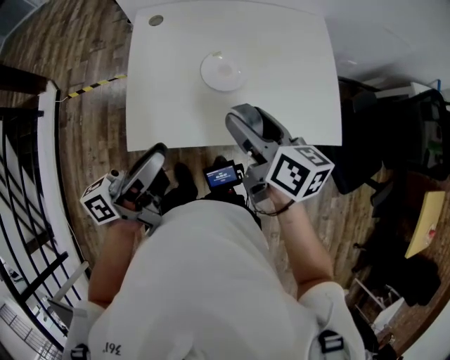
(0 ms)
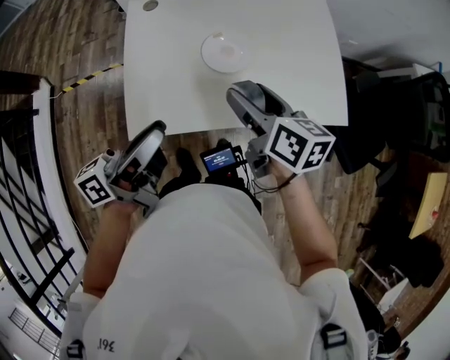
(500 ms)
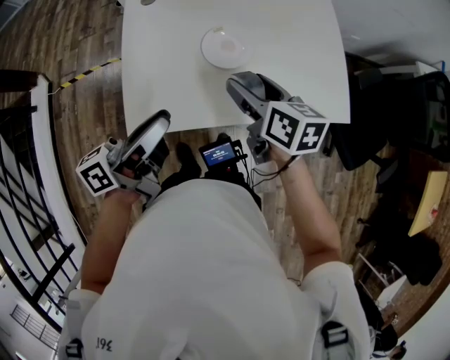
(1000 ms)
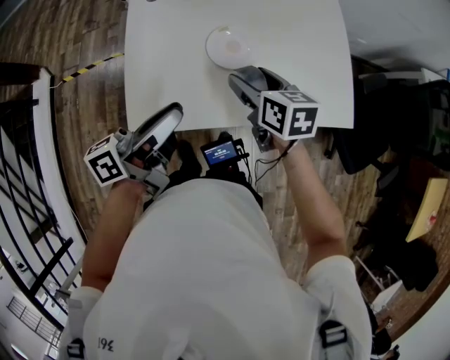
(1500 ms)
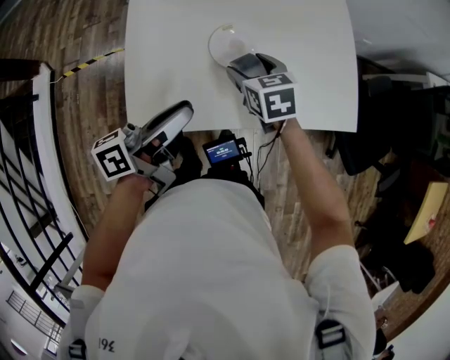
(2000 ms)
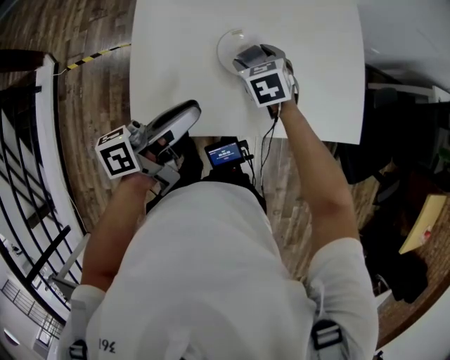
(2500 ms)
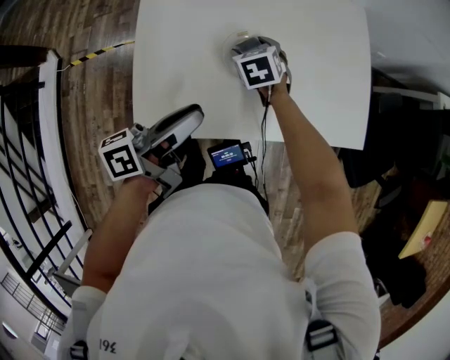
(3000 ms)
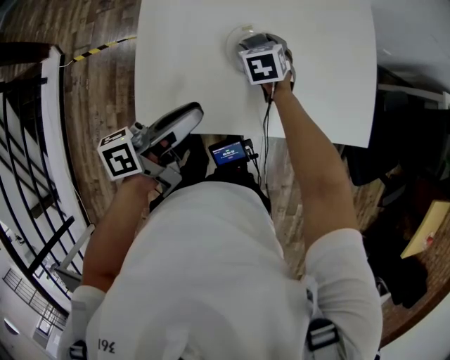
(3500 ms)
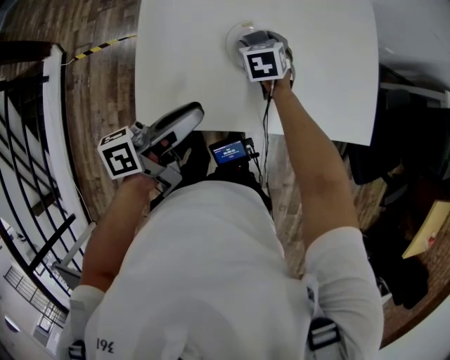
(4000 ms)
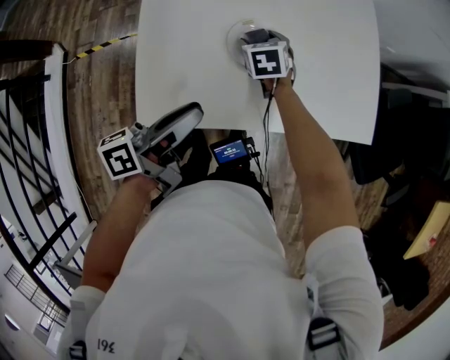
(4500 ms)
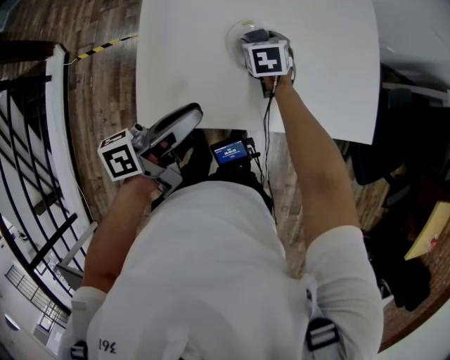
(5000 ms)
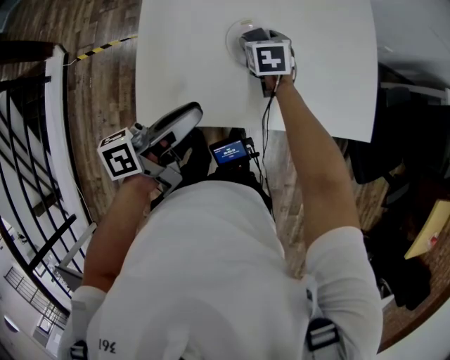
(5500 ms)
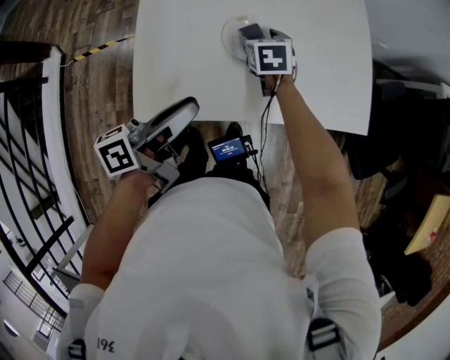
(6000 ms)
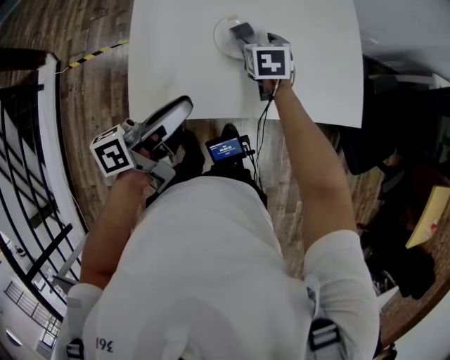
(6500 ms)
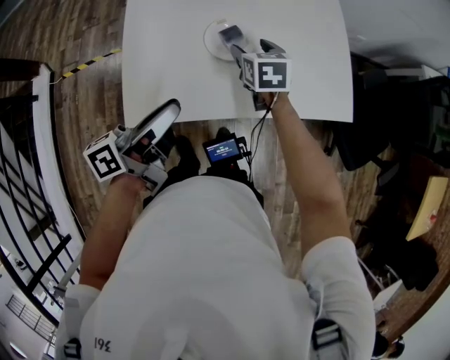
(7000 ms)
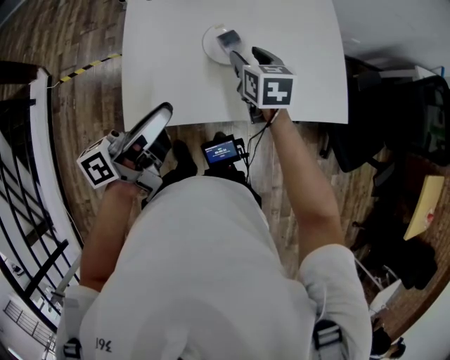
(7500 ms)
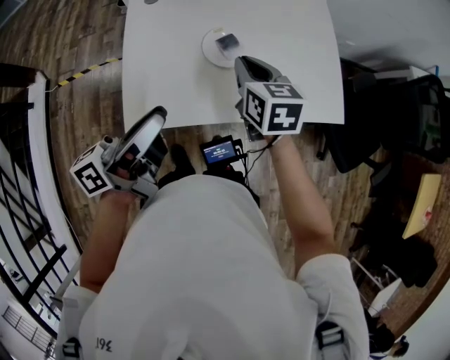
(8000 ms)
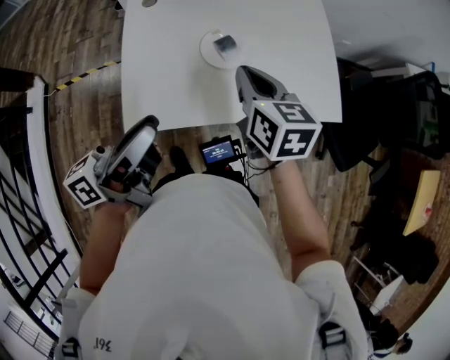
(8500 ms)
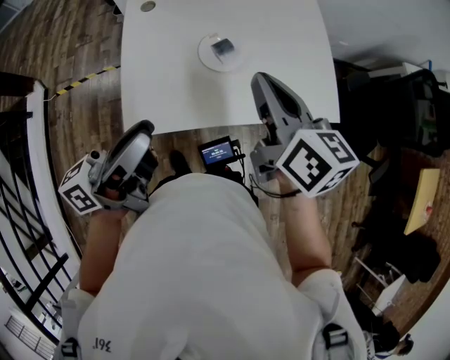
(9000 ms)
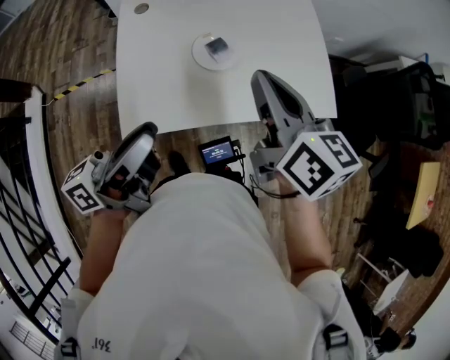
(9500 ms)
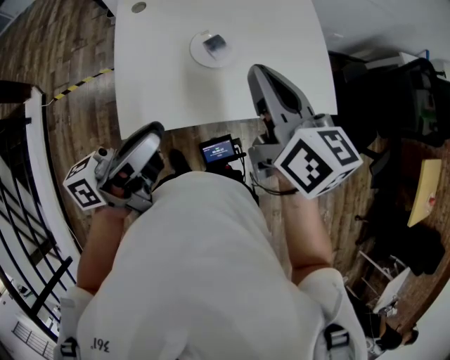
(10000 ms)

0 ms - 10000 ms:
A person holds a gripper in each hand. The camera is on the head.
0 ms - 2000 ms: The right gripper is displaced downward and forward by about 20 cm, and turns by approximately 40 degrees; the left gripper is displaced forward and downward by some 10 cm.
2000 ms - 4000 ms: The right gripper is displaced forward and downward by approximately 10 cm.
4000 ms - 6000 ms: There are only small adjustments of the grippers.
6000 ms - 8000 ms: The left gripper moves upward, approximately 10 cm. The right gripper shifts approximately 20 cm upward and backward, and closes.
8000 ms - 10000 ms: The right gripper moves upward and backward, approximately 15 cm, and changes its angle by roughly 20 degrees, while the left gripper ends up roughly 5 cm from where it was.

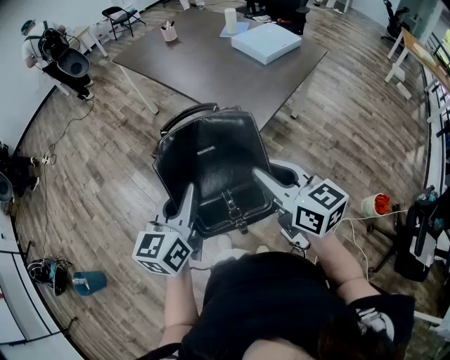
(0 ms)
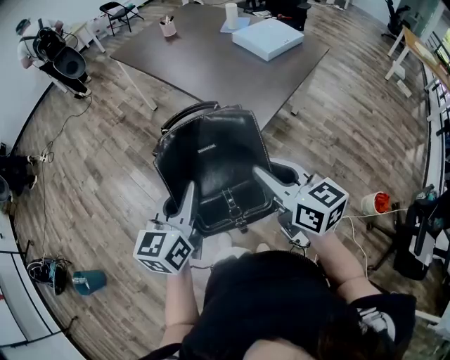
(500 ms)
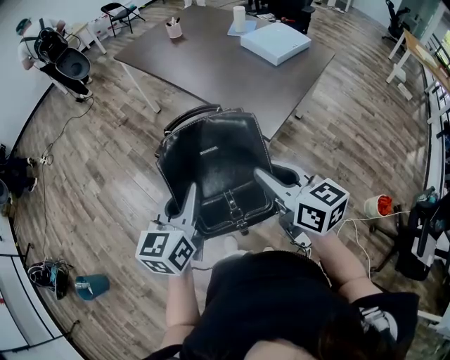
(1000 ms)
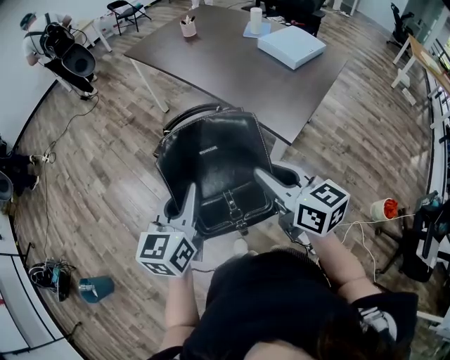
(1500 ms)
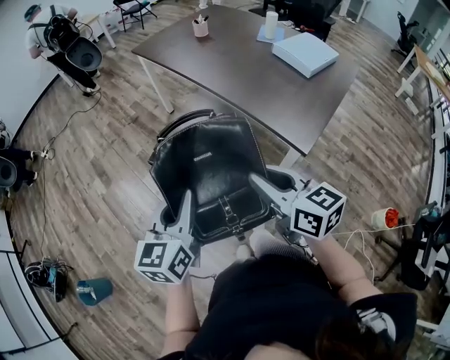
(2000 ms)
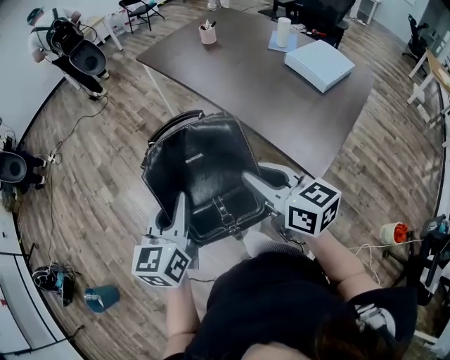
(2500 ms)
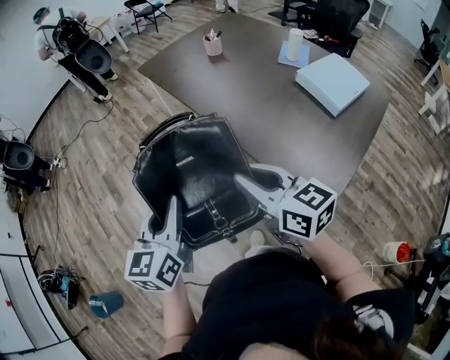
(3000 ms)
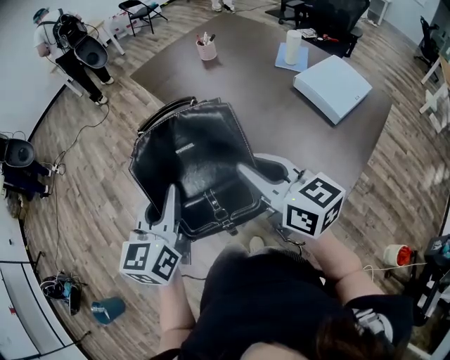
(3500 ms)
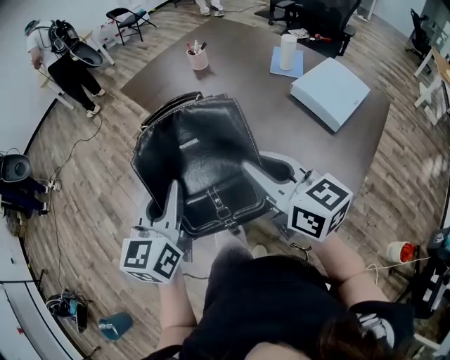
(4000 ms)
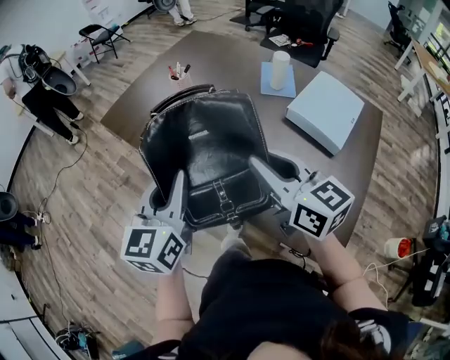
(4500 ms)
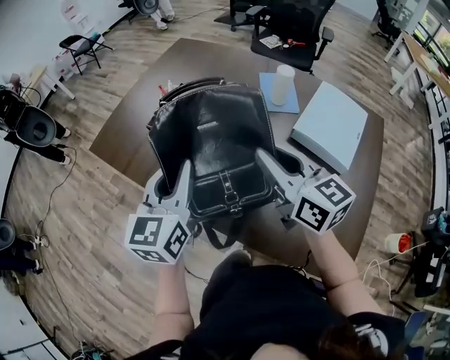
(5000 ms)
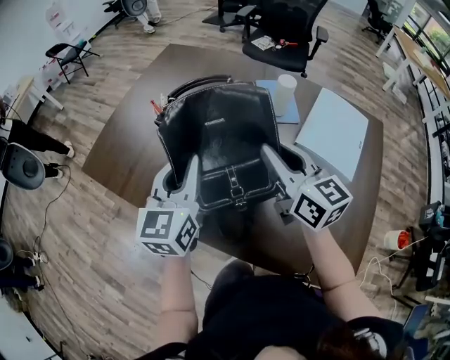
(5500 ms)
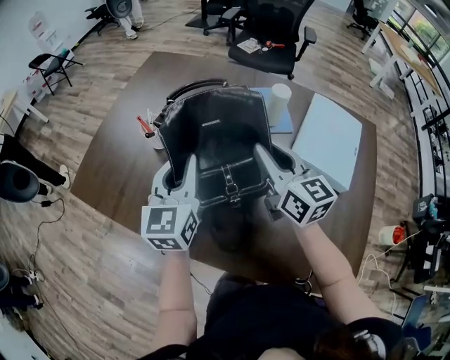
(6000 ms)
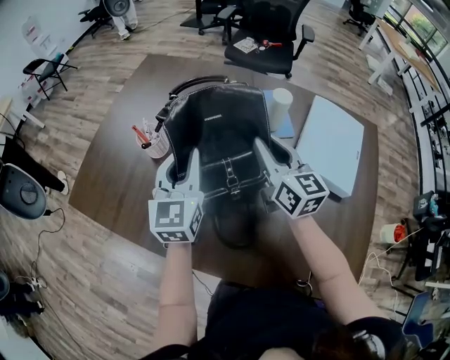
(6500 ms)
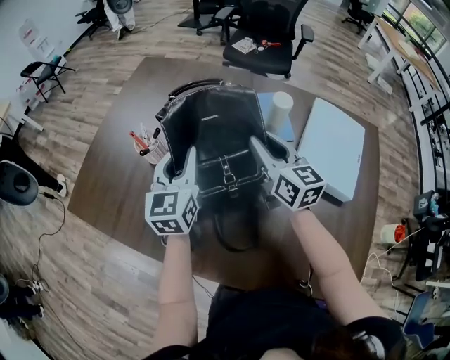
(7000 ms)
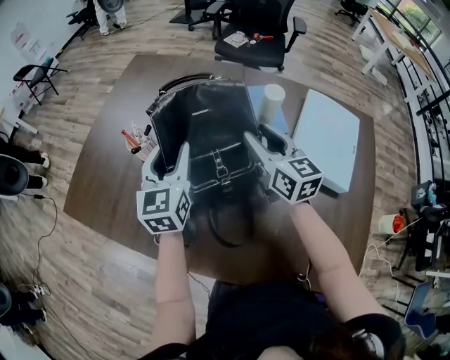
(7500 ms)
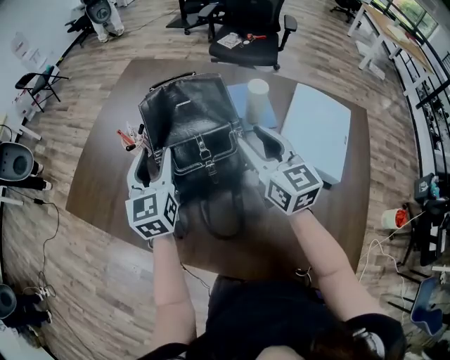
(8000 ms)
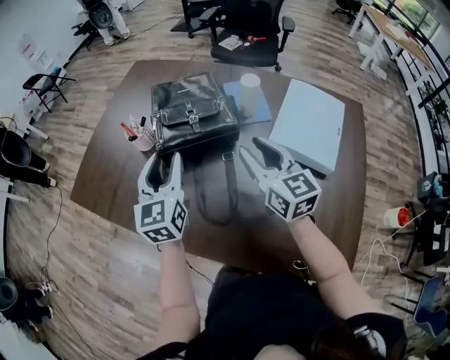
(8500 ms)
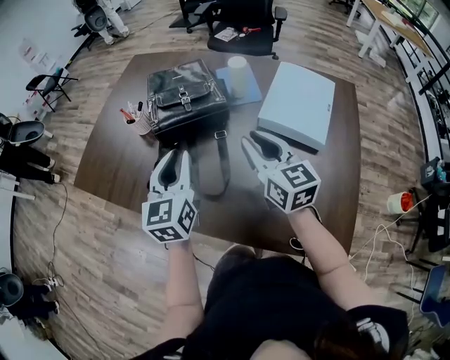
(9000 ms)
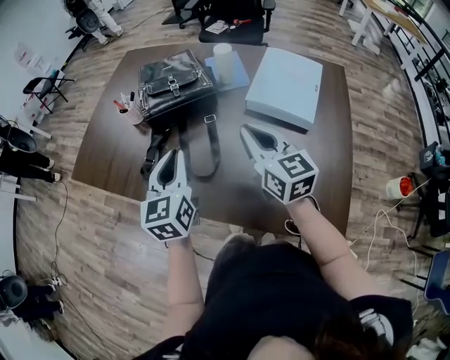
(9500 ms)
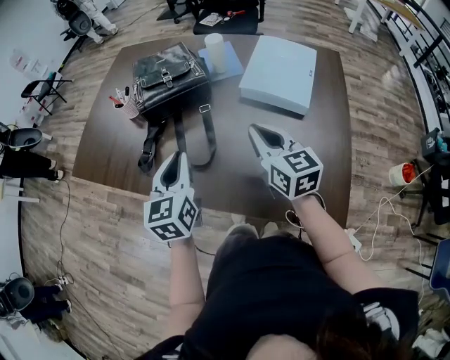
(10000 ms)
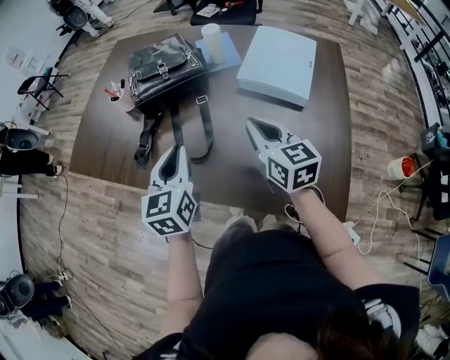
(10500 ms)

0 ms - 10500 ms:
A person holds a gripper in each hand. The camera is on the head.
0 ms - 2000 ms: Both grippers move to the left and forward, about 20 cm.
2000 ms - 4000 ms: The grippers both shift forward by approximately 35 cm.
4000 ms - 6500 ms: Both grippers are carried roughly 50 cm. The right gripper turns by approximately 40 degrees. Meanwhile the left gripper turns by roughly 30 degrees.
6500 ms - 8500 ms: Both grippers travel together backward, about 10 cm. The left gripper opens.
8500 ms - 10500 ms: The grippers both shift backward and to the right by about 20 cm. The left gripper closes up; the right gripper closes up.

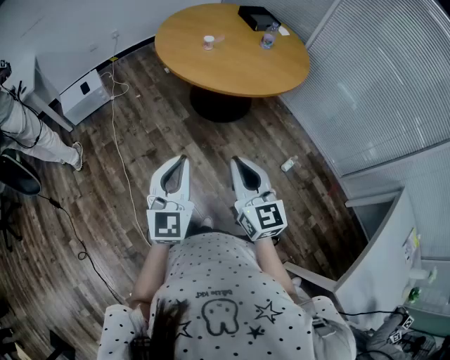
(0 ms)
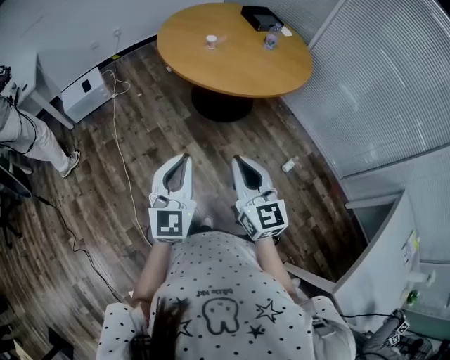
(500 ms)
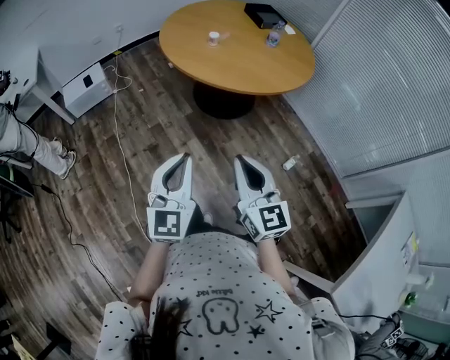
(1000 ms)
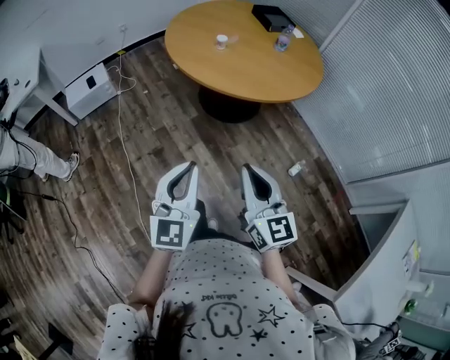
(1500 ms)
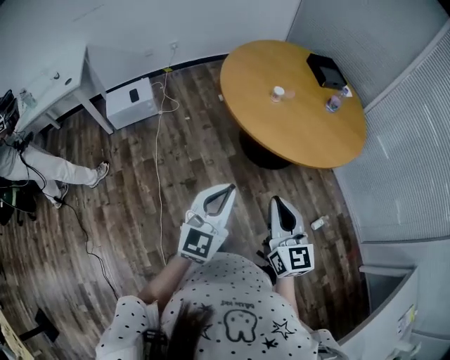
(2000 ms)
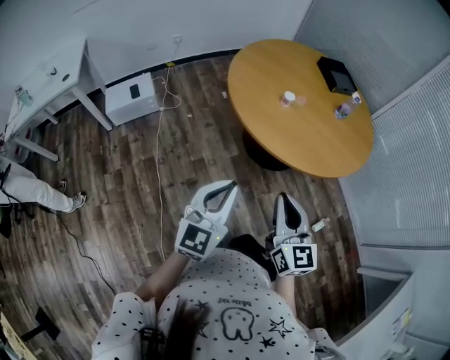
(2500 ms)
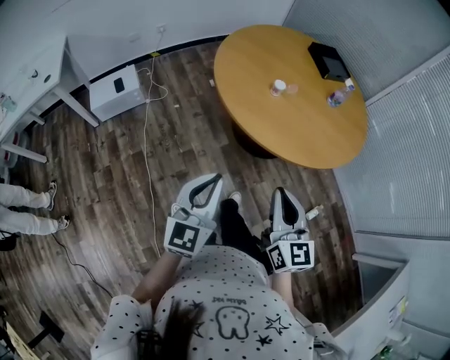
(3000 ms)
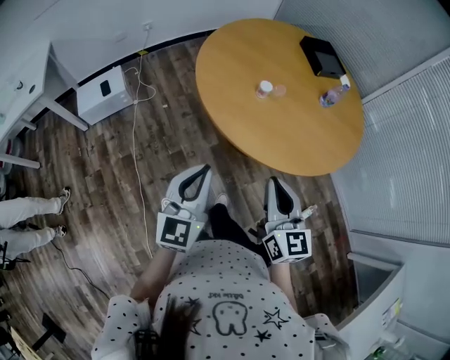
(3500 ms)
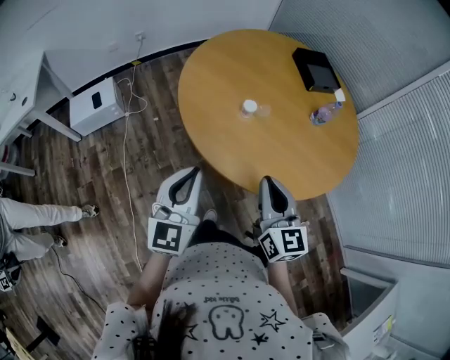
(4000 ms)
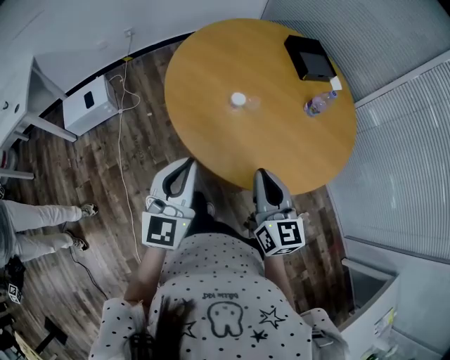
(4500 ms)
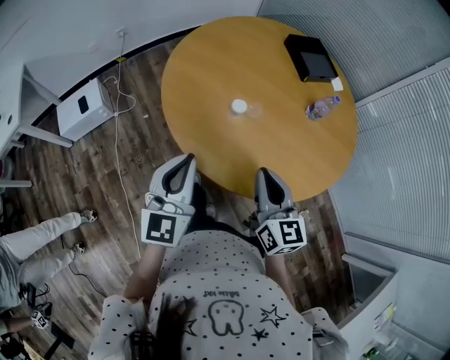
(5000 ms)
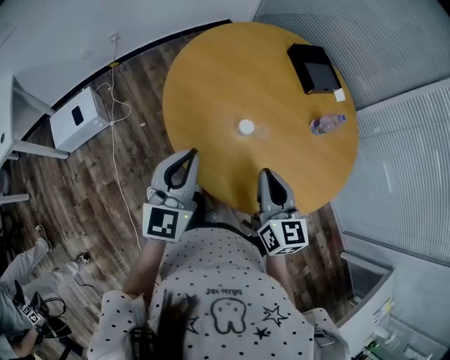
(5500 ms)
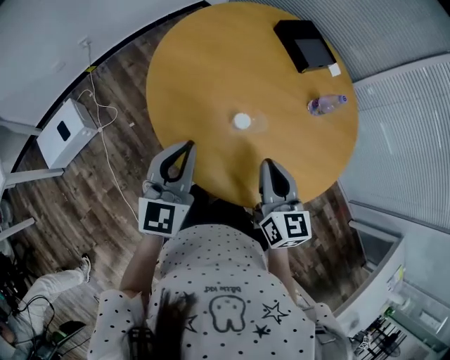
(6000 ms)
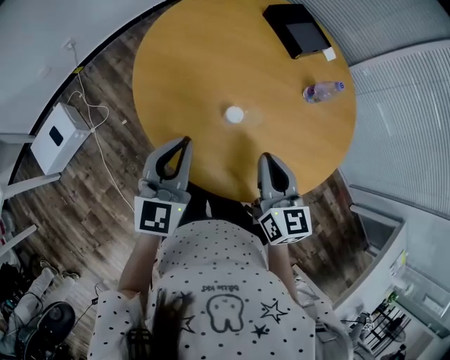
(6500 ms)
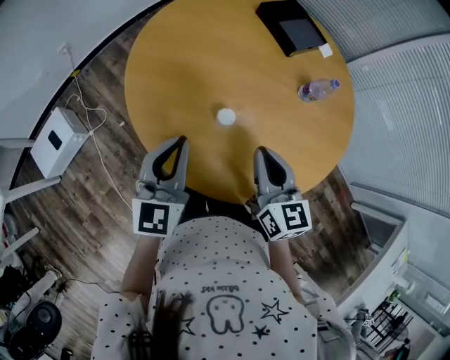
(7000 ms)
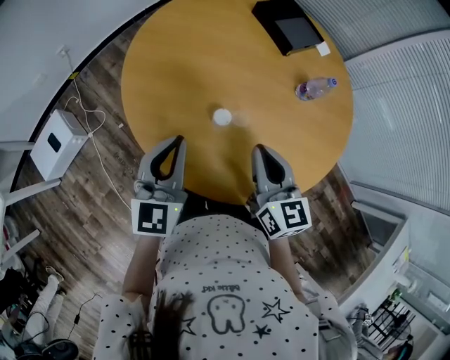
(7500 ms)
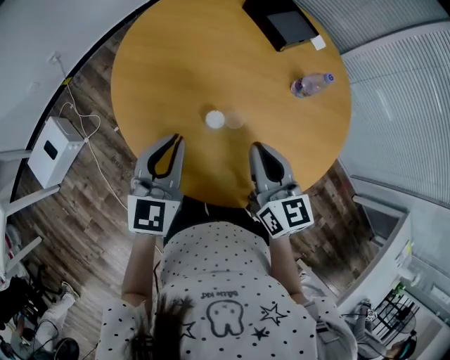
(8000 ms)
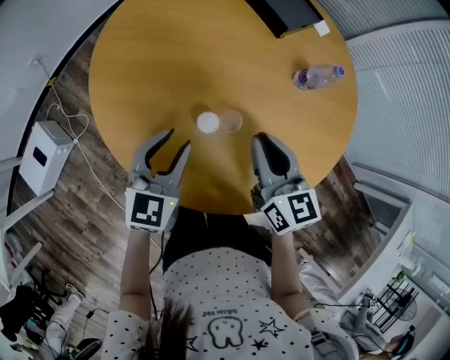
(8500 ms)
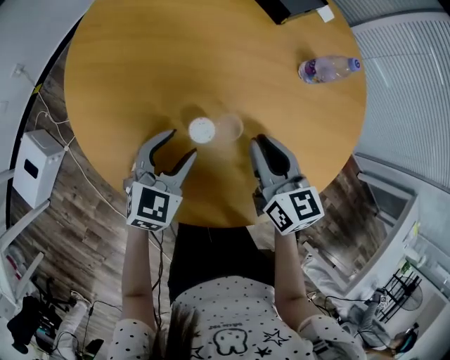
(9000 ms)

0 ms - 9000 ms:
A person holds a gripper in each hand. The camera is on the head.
0 ms - 2000 ms: The left gripper goes some 15 cm forward; the right gripper moves forward and to the left, approximately 20 cm.
2000 ms - 4500 ms: Both grippers travel together forward, roughly 30 cm.
4500 ms - 7000 ms: The grippers both shift forward by roughly 25 cm.
7000 ms - 9000 ms: The right gripper is displaced downward and forward by roughly 15 cm, while the left gripper heads downward, covering roughly 25 cm, changes its angle by about 40 degrees, and opens.
